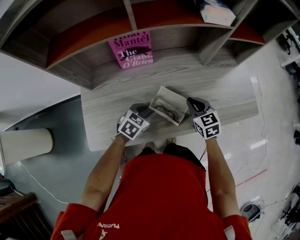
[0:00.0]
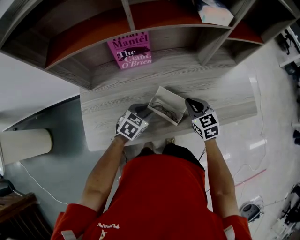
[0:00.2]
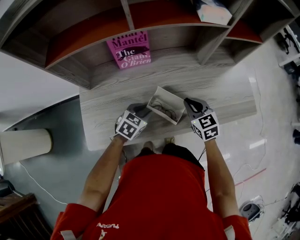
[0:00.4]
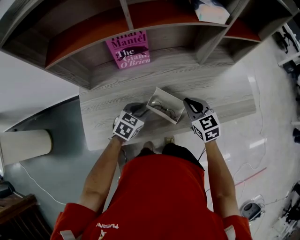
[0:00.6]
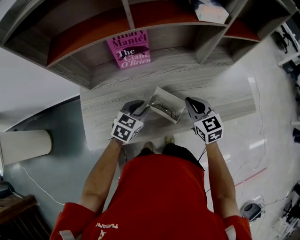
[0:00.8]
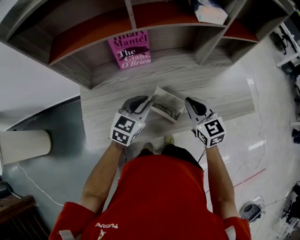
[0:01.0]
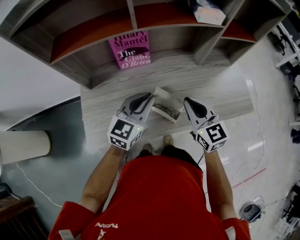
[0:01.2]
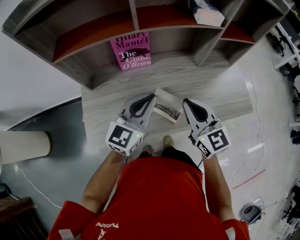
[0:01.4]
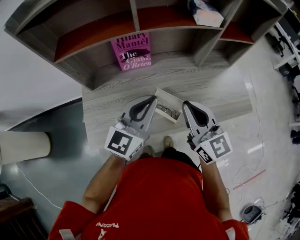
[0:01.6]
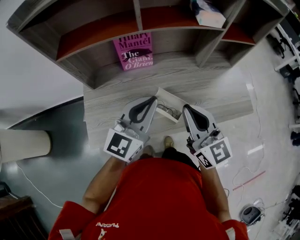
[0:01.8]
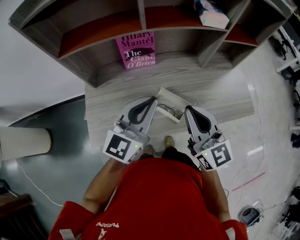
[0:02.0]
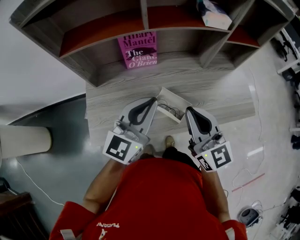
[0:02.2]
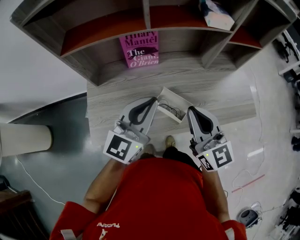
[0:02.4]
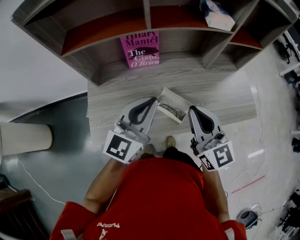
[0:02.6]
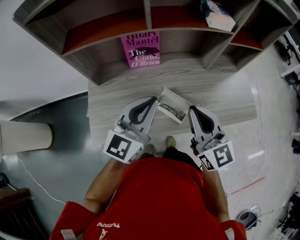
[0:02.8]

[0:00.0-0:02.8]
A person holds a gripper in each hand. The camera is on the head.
0:00.0 to 0:01.4: The two grippers go about 20 cm upward. The right gripper turns by about 30 degrees. Meanwhile the left gripper tips its fingers upward by approximately 40 degrees, and closes up.
0:01.4 to 0:02.8: The right gripper ends up about 5 cm from where it was. Meanwhile the left gripper shifts by approximately 5 cm.

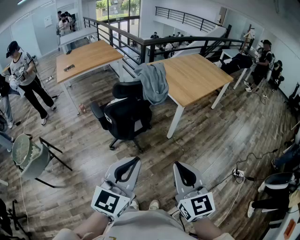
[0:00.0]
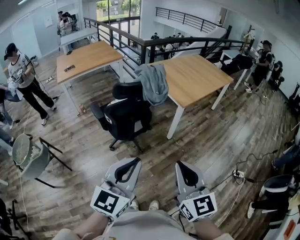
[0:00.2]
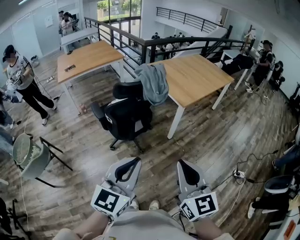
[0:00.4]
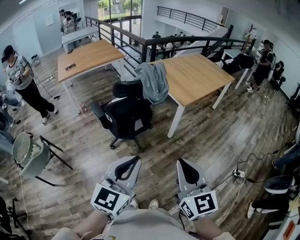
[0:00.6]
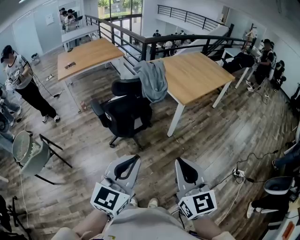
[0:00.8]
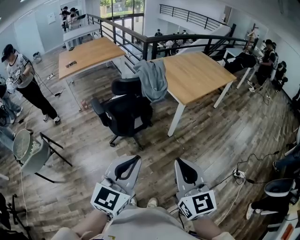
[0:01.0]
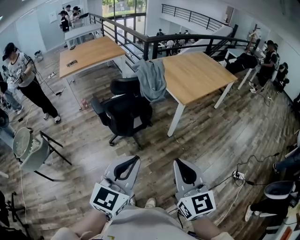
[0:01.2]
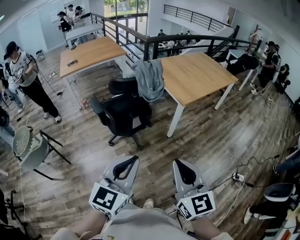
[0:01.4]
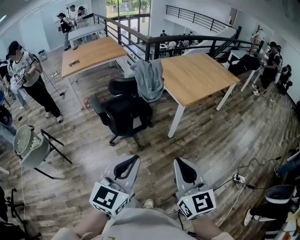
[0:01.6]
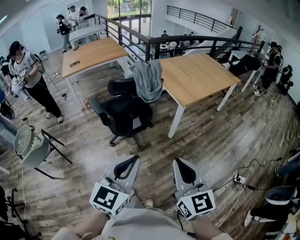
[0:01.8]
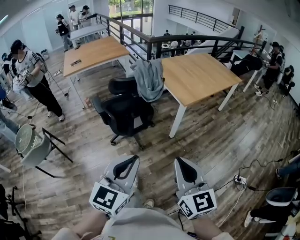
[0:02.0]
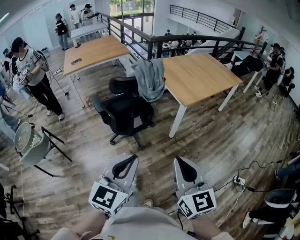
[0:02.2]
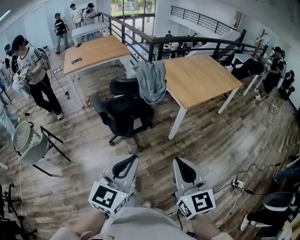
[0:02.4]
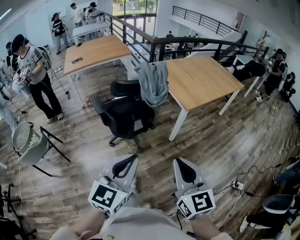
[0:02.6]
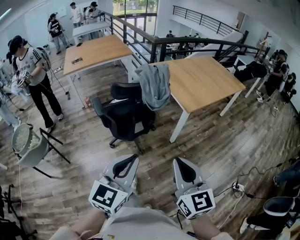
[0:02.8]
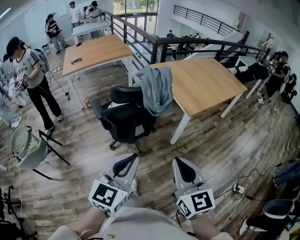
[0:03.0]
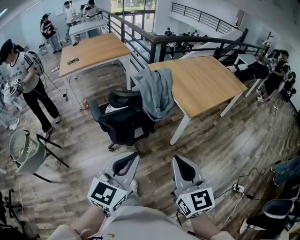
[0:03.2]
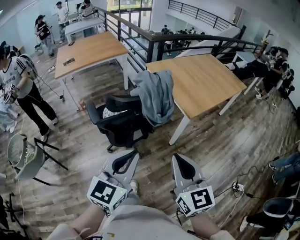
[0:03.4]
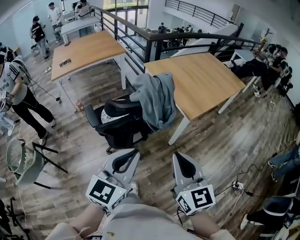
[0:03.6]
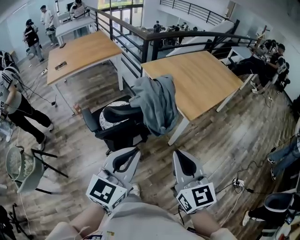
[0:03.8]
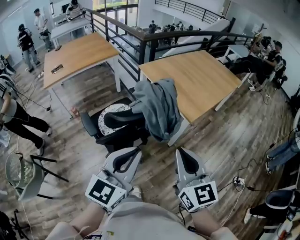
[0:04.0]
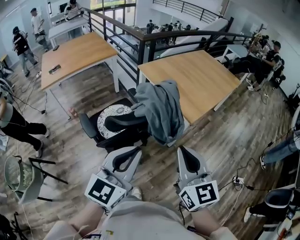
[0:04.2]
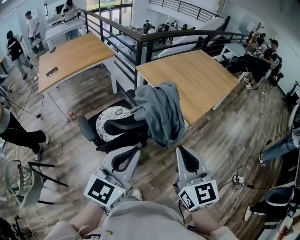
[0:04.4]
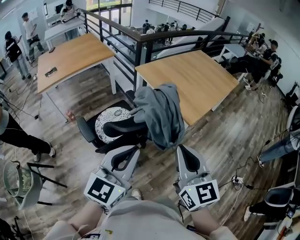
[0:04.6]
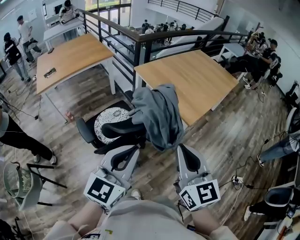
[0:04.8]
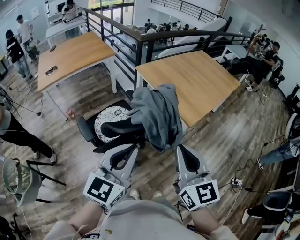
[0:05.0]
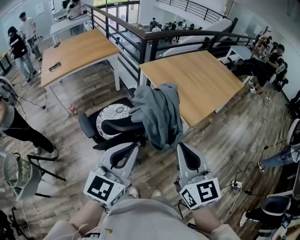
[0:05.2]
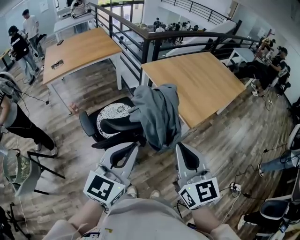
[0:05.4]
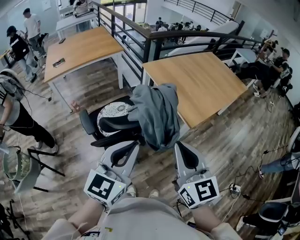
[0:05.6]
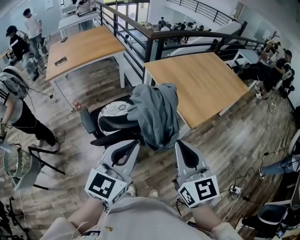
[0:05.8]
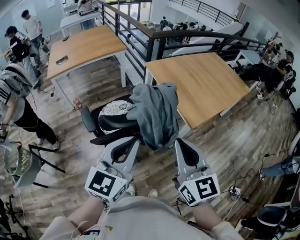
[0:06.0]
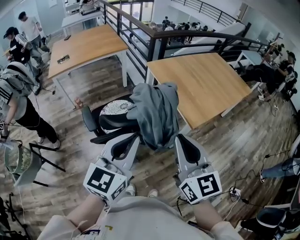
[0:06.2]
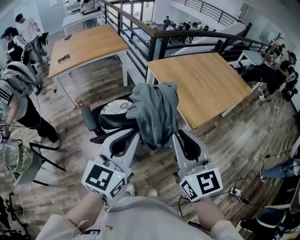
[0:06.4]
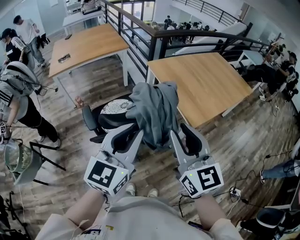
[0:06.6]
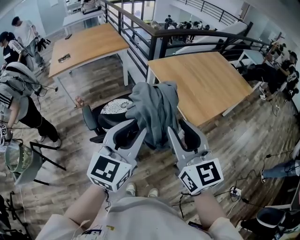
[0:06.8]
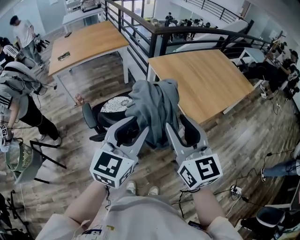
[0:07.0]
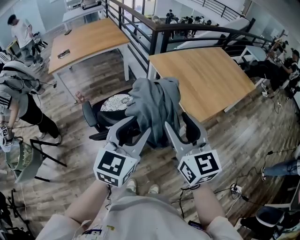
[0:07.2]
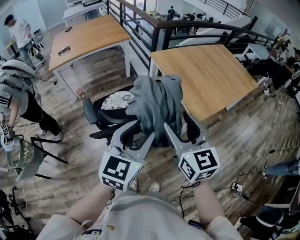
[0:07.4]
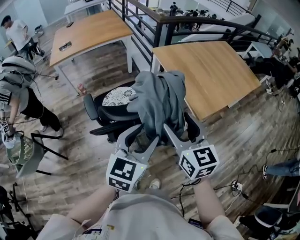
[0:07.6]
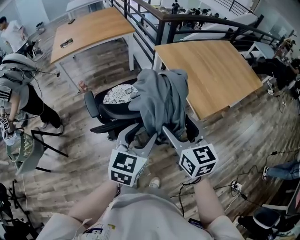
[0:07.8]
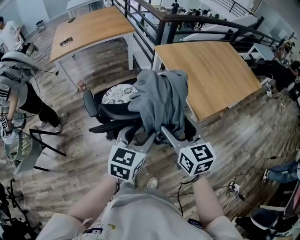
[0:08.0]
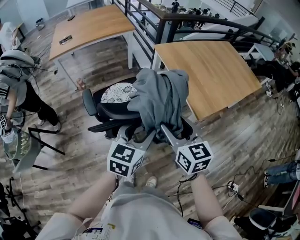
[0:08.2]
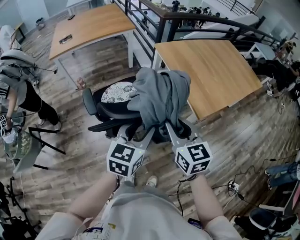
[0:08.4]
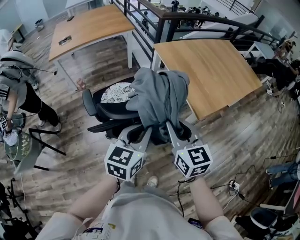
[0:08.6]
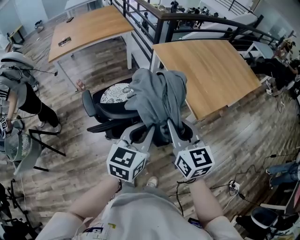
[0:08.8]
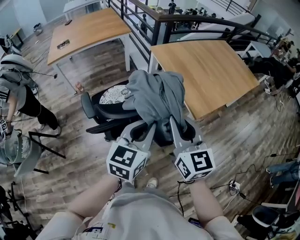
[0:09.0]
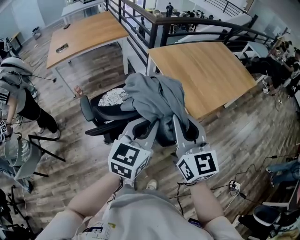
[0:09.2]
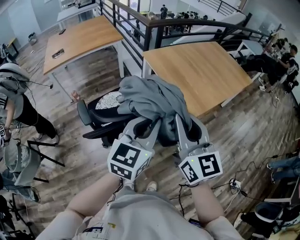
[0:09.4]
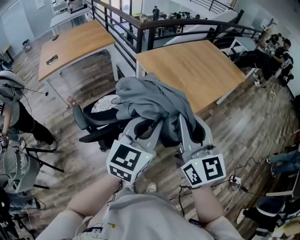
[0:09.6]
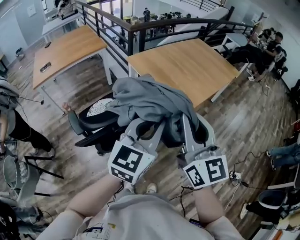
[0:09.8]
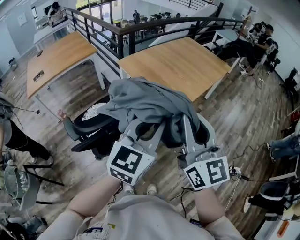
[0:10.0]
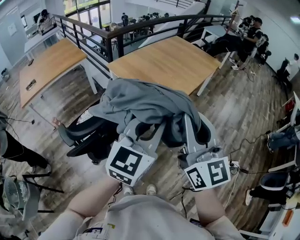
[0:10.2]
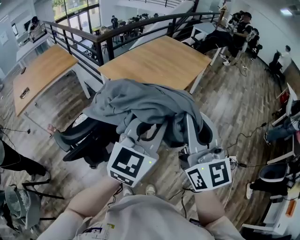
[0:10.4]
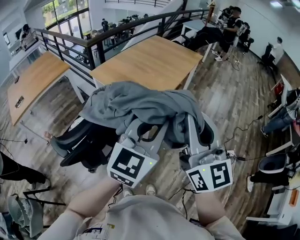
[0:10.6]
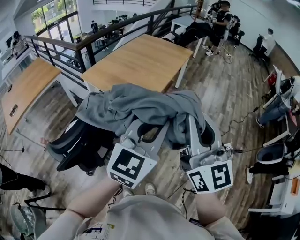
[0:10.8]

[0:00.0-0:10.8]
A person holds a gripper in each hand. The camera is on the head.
0:00.0 to 0:01.6: Both grippers move to the right, roughly 5 cm.
0:01.6 to 0:03.0: Both grippers move forward, approximately 10 cm.
0:03.0 to 0:04.6: Both grippers move forward and to the left, about 25 cm.
0:04.6 to 0:06.2: The right gripper shifts by some 5 cm, while the left gripper changes place by about 5 cm.
0:06.2 to 0:07.8: The left gripper shifts some 10 cm downward, and opens up, while the right gripper heads downward and forward, covering approximately 15 cm, and opens.
0:07.8 to 0:09.2: The left gripper moves upward and to the right, roughly 10 cm, and closes. Meanwhile the right gripper shifts roughly 10 cm upward, and closes.
0:09.2 to 0:10.8: The left gripper moves roughly 30 cm, and rotates about 40 degrees, while the right gripper ends up approximately 30 cm from where it was, and changes its angle by about 40 degrees.

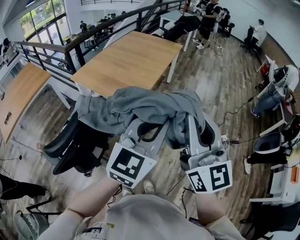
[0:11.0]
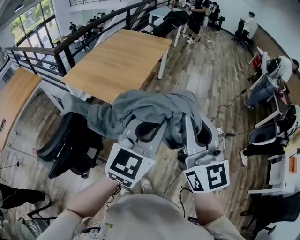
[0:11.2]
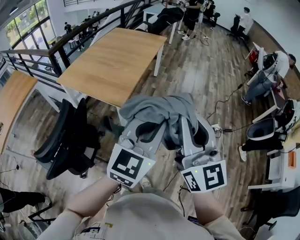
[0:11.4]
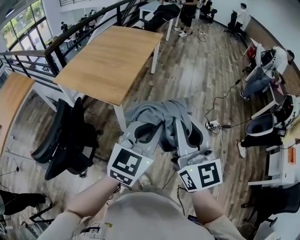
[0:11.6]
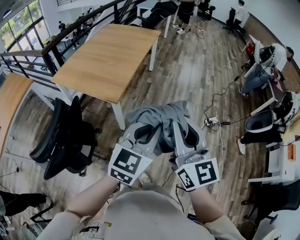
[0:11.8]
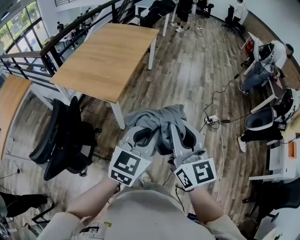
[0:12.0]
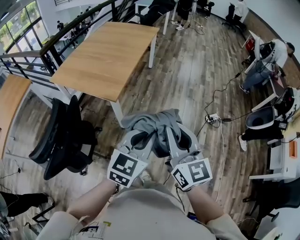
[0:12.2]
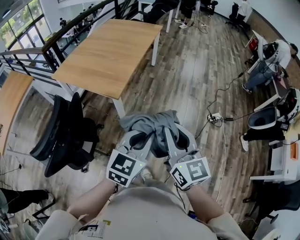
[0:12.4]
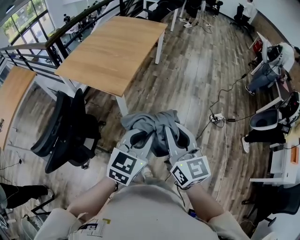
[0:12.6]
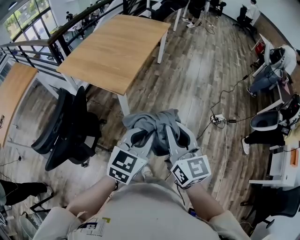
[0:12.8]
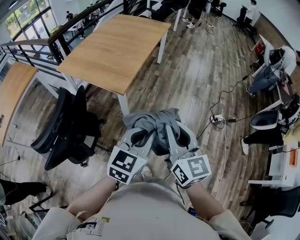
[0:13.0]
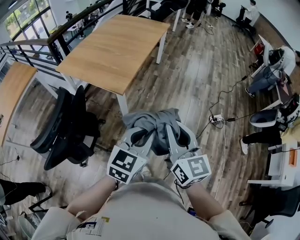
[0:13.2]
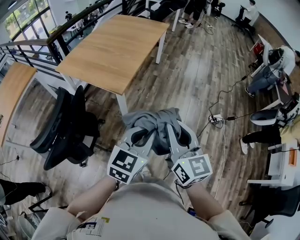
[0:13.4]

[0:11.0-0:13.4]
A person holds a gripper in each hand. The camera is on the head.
0:11.0 to 0:12.2: Both grippers travel together downward and to the right, approximately 15 cm.
0:12.2 to 0:13.4: The grippers make only small movements.

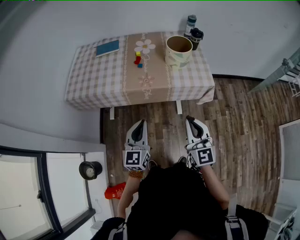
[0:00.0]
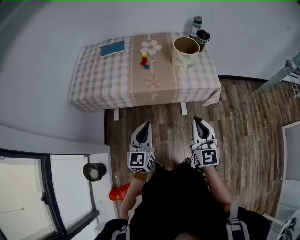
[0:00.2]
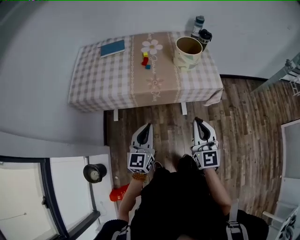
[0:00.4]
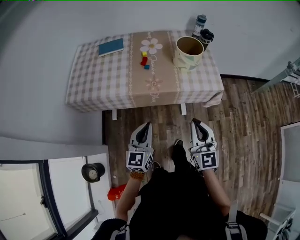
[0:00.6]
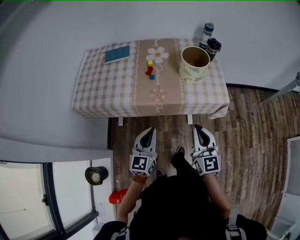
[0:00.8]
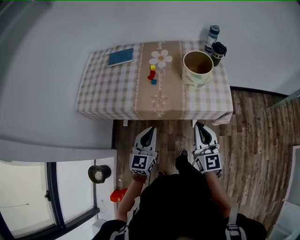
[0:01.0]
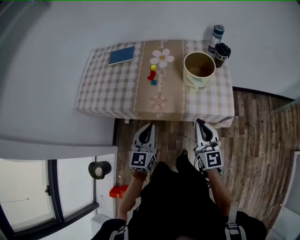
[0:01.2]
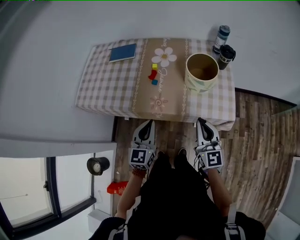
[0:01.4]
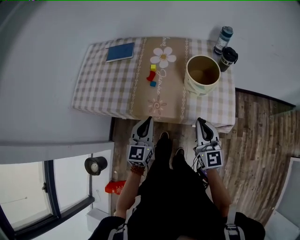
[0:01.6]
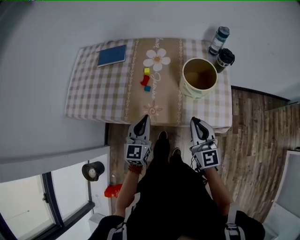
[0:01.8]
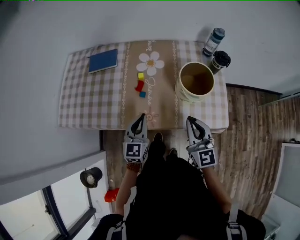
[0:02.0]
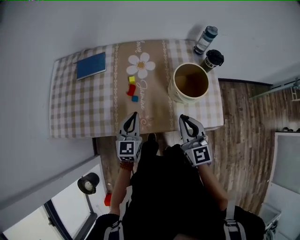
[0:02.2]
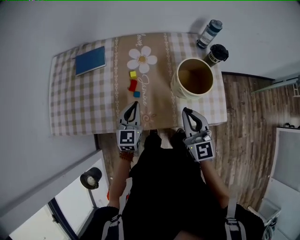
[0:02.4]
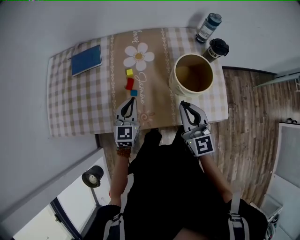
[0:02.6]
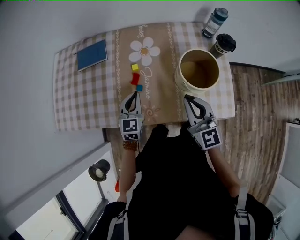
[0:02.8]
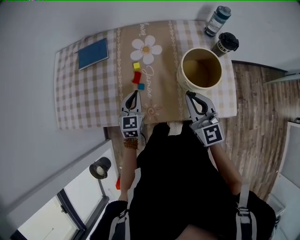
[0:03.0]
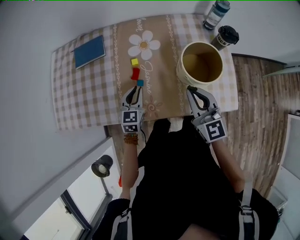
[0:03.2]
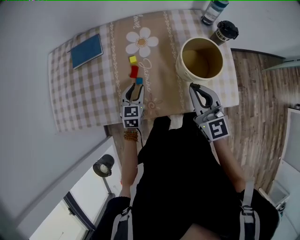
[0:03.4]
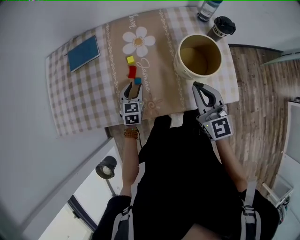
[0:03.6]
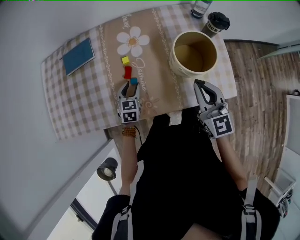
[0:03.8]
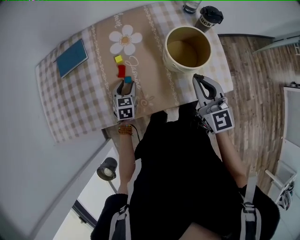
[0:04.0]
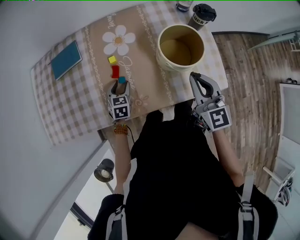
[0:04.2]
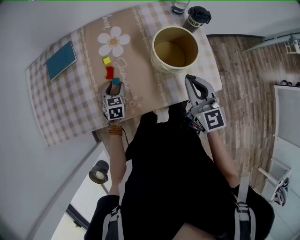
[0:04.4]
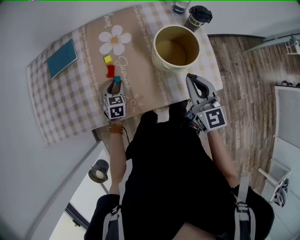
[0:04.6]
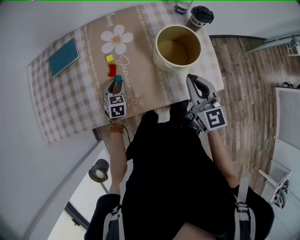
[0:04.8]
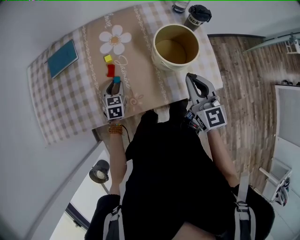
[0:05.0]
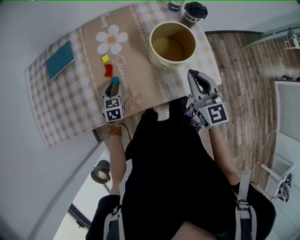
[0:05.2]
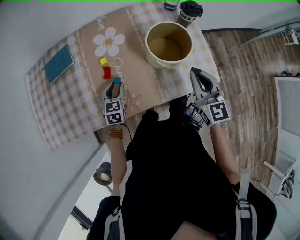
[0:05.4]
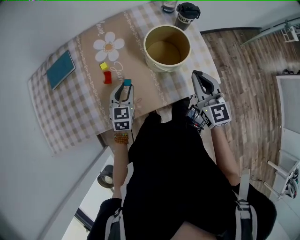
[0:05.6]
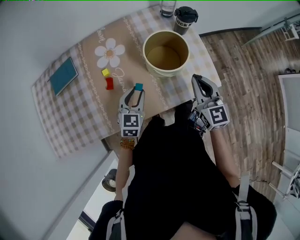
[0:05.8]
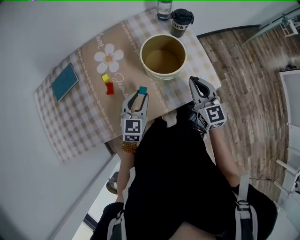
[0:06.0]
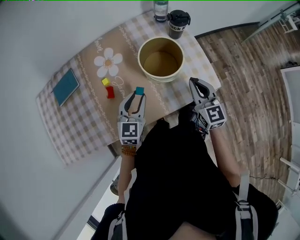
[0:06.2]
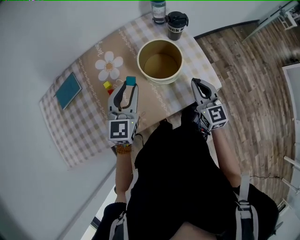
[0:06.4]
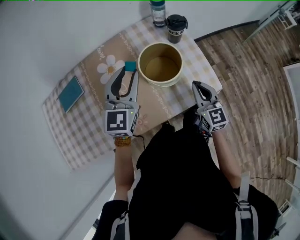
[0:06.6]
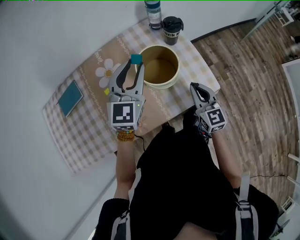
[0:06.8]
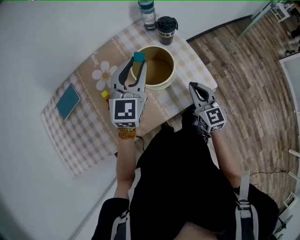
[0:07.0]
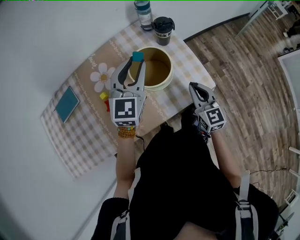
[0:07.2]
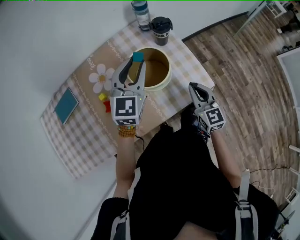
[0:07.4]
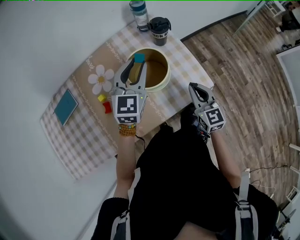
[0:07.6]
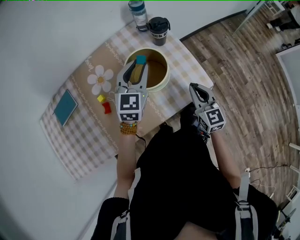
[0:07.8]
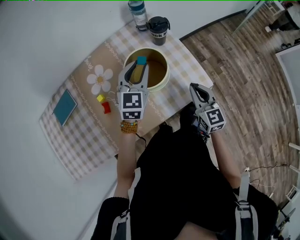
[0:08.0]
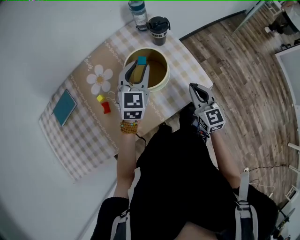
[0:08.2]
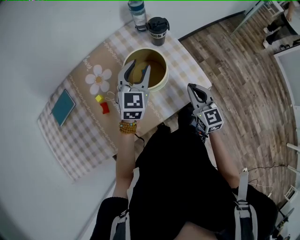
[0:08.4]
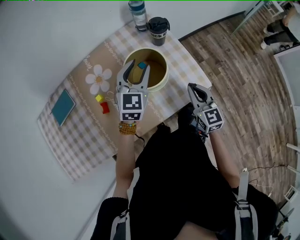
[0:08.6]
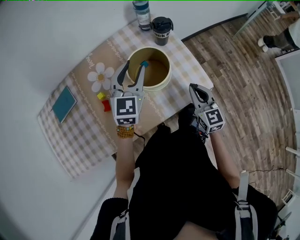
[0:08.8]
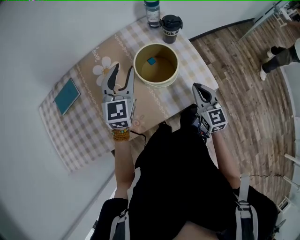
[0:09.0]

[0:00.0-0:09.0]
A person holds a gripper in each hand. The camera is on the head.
0:00.0 to 0:01.6: Both grippers travel together forward, about 25 cm.
0:01.6 to 0:03.0: The right gripper goes roughly 15 cm forward; the left gripper shifts roughly 25 cm forward and downward.
0:03.0 to 0:04.4: The left gripper heads downward, covering about 10 cm, swivels some 20 degrees, and opens, while the right gripper is displaced to the right by some 5 cm.
0:04.4 to 0:06.0: The left gripper moves to the right and upward, some 20 cm, and turns by about 30 degrees, while the right gripper shifts roughly 5 cm to the right.
0:06.0 to 0:07.6: The right gripper is displaced to the right by about 5 cm. The left gripper travels upward, forward and to the right by roughly 25 cm.
0:07.6 to 0:09.0: The left gripper shifts roughly 10 cm to the left.
